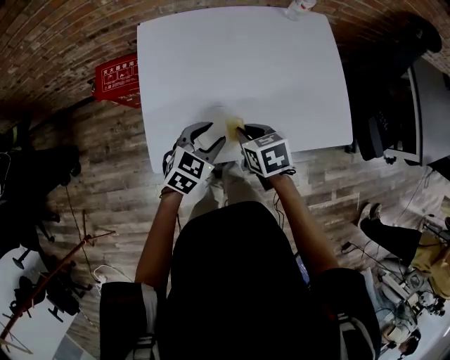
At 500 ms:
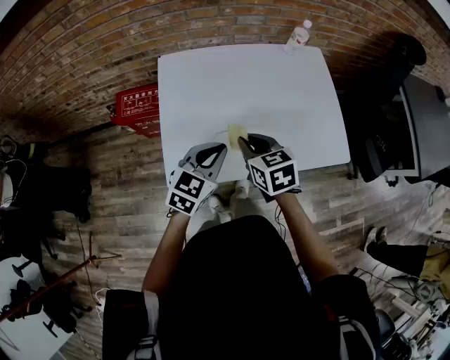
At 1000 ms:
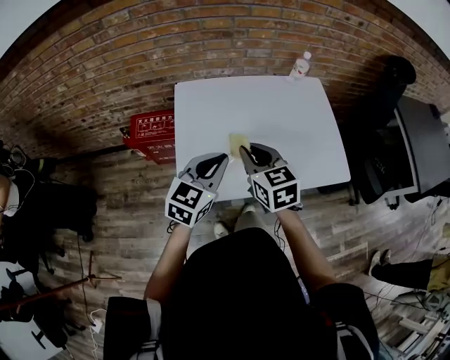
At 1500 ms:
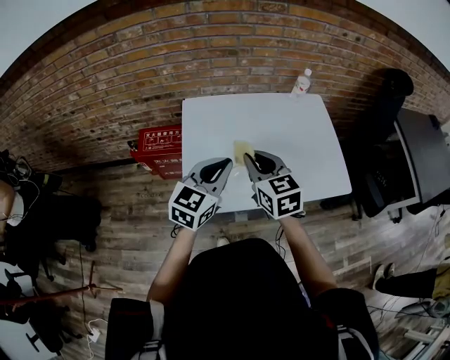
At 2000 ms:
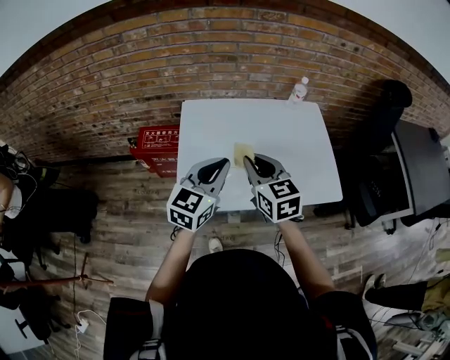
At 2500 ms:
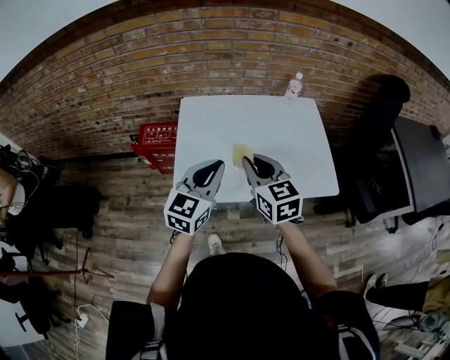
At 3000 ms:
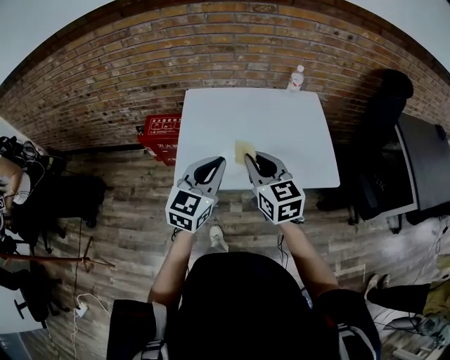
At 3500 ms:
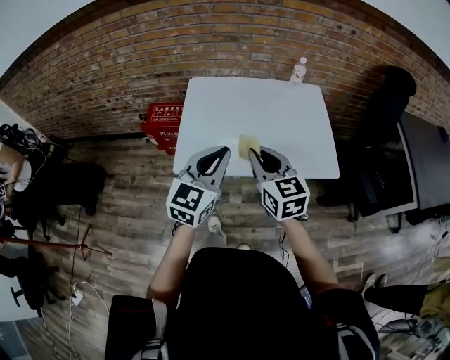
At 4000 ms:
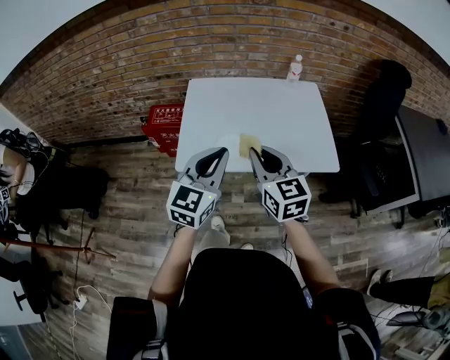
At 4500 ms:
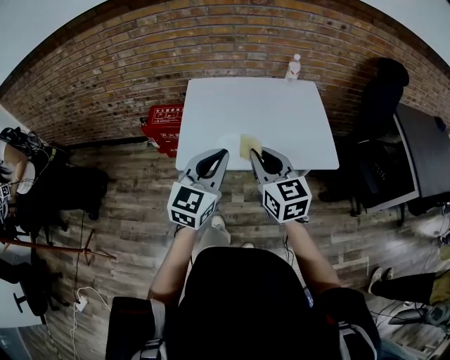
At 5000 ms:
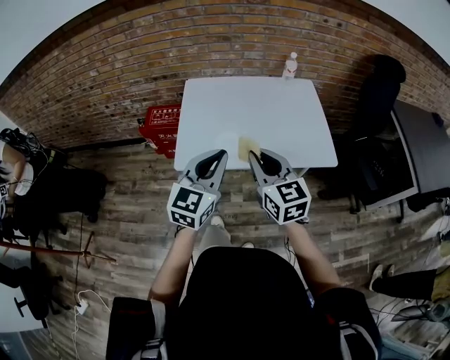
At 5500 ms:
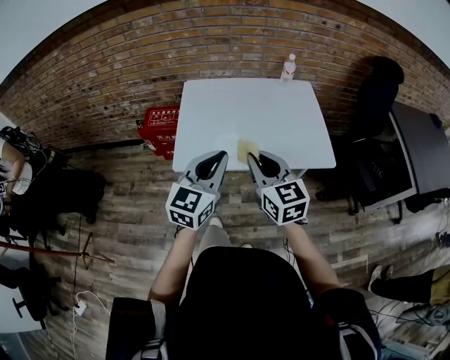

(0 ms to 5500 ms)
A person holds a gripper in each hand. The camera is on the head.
0 ms - 2000 ms: The grippers both shift upward by about 25 cm. The right gripper angles its fingers upward, by approximately 30 degrees. The left gripper turns by about 30 degrees, and closes up.
2000 ms - 3500 ms: The left gripper goes some 10 cm backward. Meanwhile the right gripper is displaced backward and to the right by approximately 15 cm.
3500 ms - 5500 ms: The two grippers go approximately 5 cm backward.

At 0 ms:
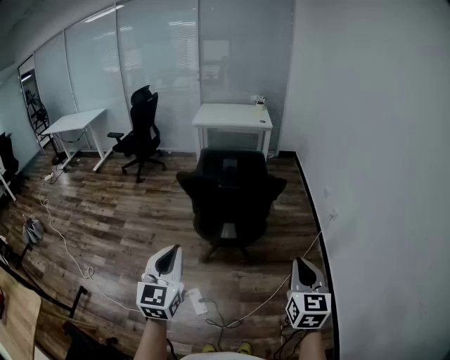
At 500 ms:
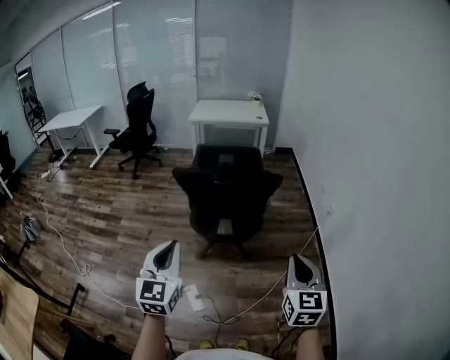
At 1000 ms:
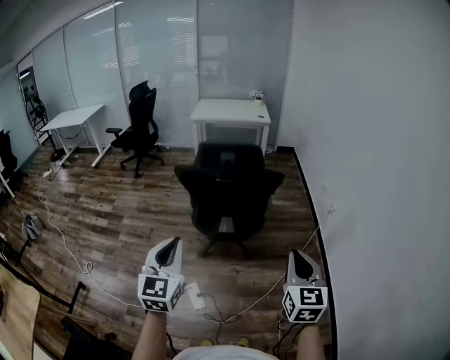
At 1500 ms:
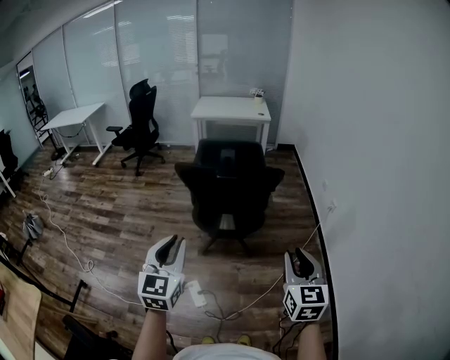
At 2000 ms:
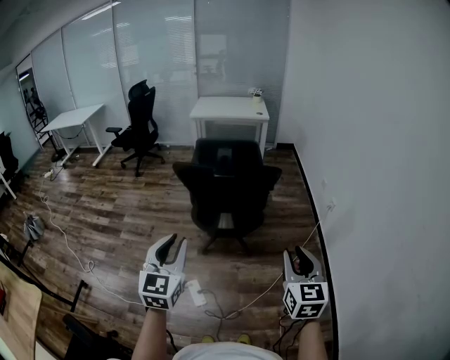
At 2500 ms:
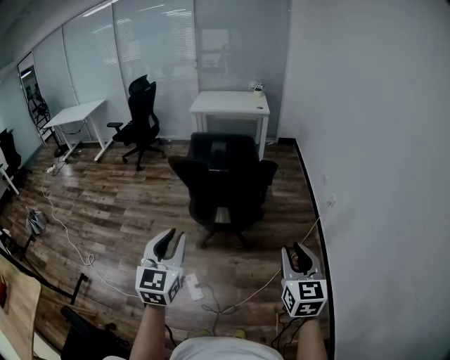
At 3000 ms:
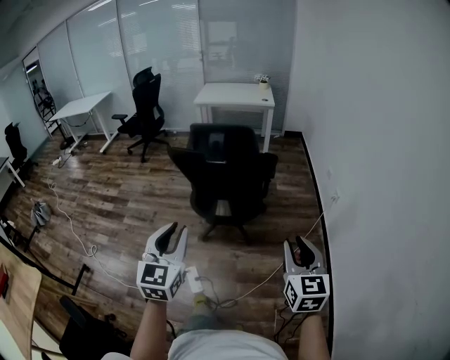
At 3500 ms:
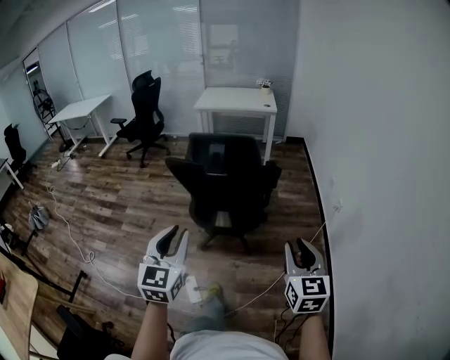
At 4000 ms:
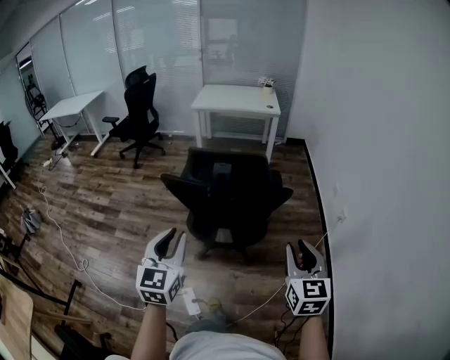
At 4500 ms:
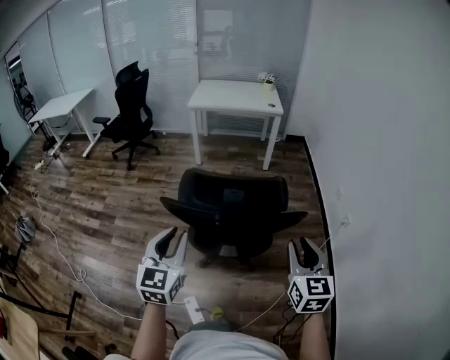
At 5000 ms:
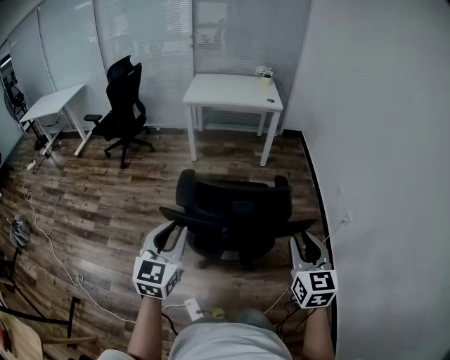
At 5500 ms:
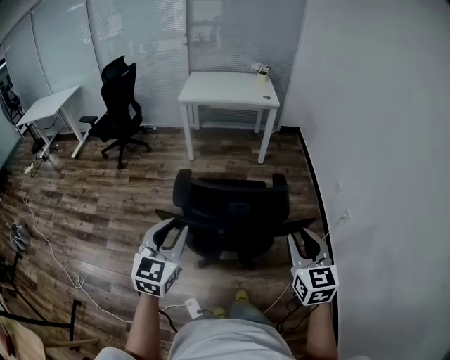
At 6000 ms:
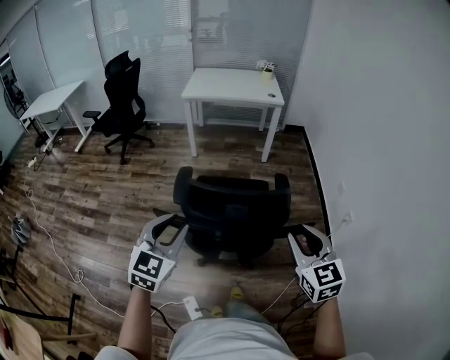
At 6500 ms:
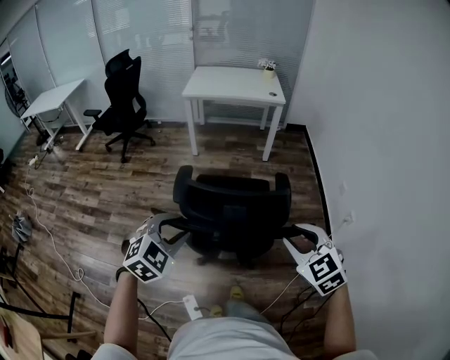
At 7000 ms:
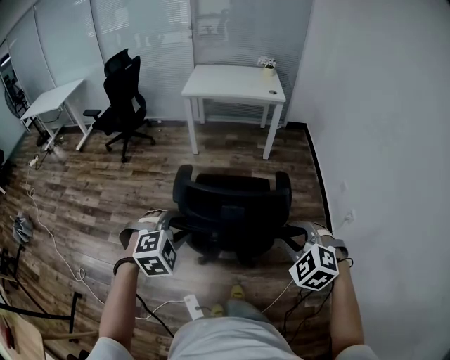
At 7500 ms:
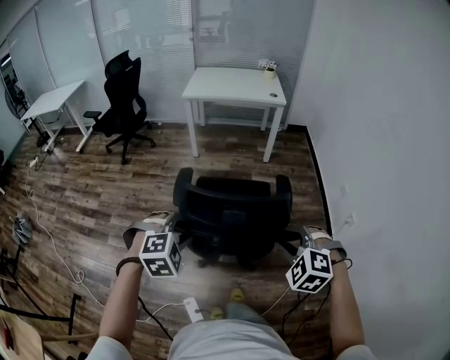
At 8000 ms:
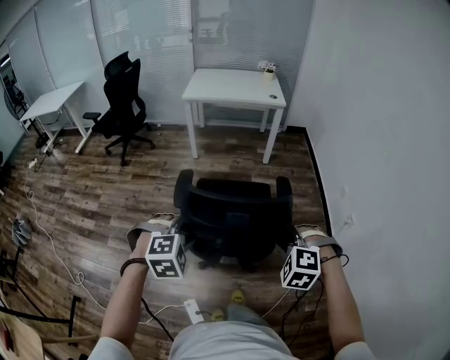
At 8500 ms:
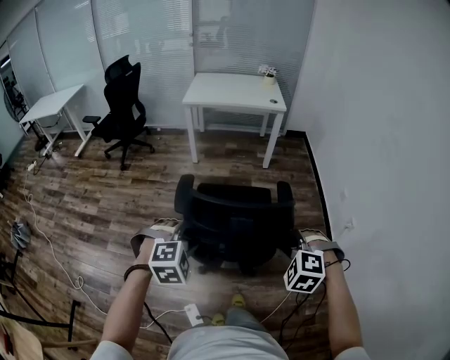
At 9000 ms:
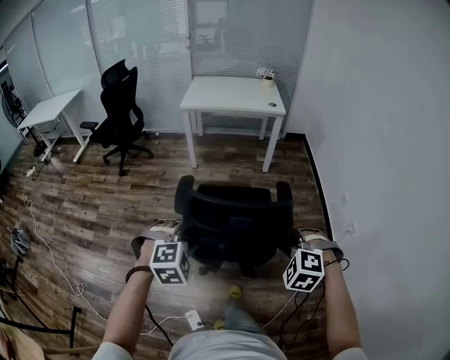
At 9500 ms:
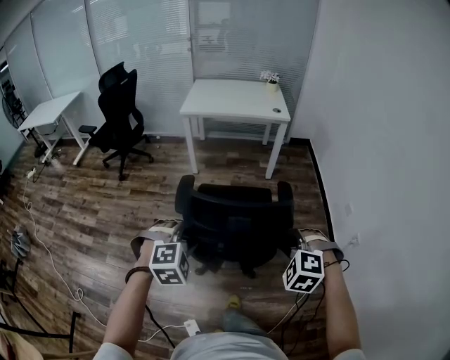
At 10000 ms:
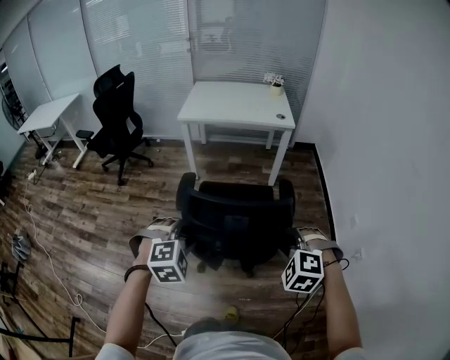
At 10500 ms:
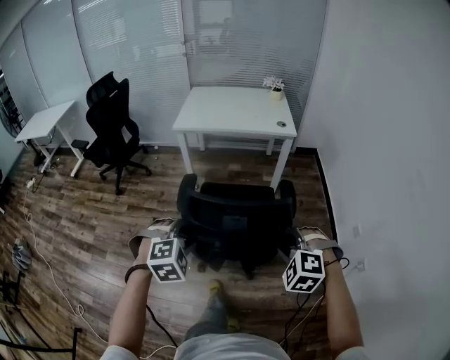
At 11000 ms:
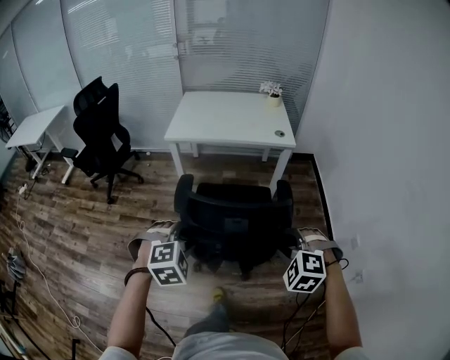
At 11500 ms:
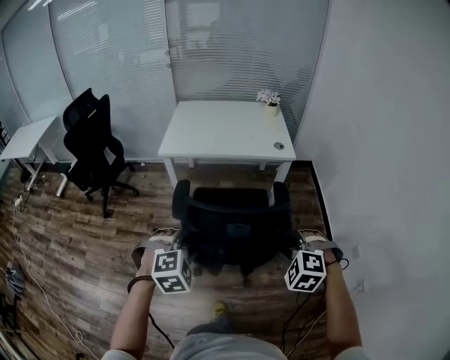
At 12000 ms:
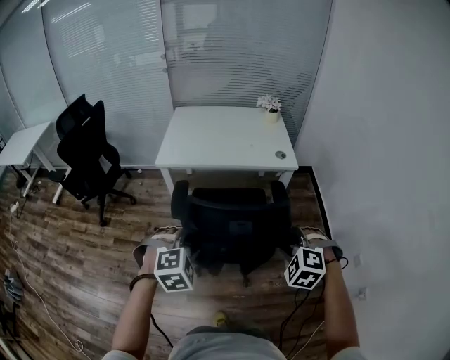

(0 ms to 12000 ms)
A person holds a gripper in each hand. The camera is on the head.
0 ms - 2000 ms: The right gripper opens. The left gripper opens its fingers.
2000 ms - 4000 ms: The grippers both shift forward by some 25 cm.
4000 ms - 6000 ms: The two grippers go some 25 cm forward. The left gripper rotates roughly 20 degrees.
6000 ms - 8000 ms: The grippers both shift downward by about 10 cm. The left gripper tips its fingers downward by some 40 degrees. Meanwhile the right gripper tips its fingers downward by some 40 degrees.
8000 ms - 10000 ms: Both grippers move forward, roughly 30 cm.
10000 ms - 12000 ms: The pair of grippers is taken forward, roughly 40 cm.

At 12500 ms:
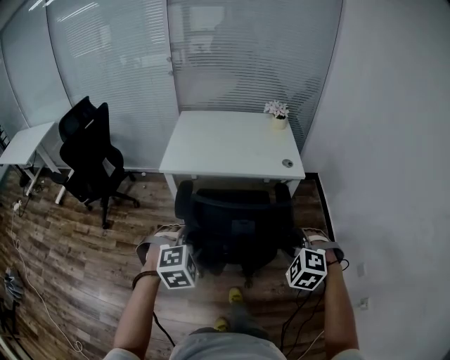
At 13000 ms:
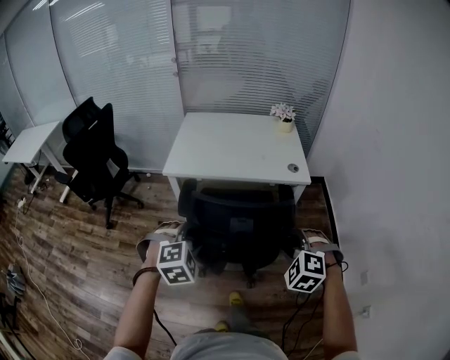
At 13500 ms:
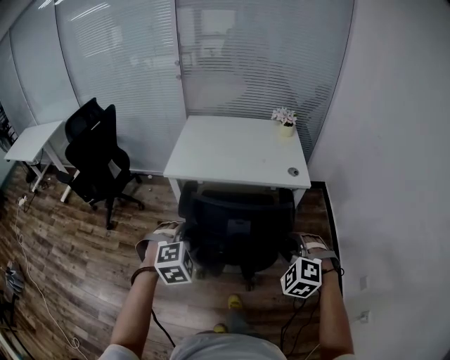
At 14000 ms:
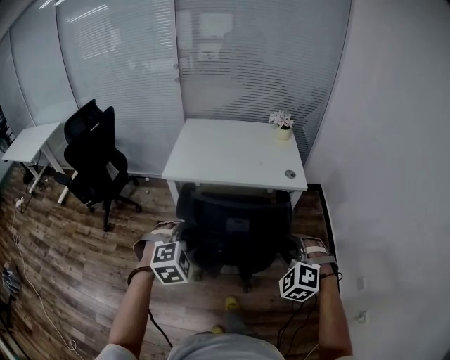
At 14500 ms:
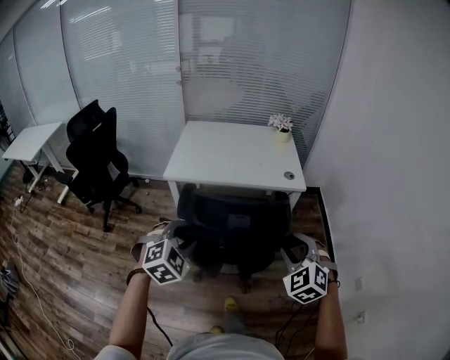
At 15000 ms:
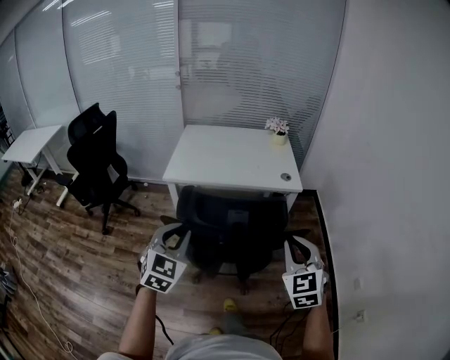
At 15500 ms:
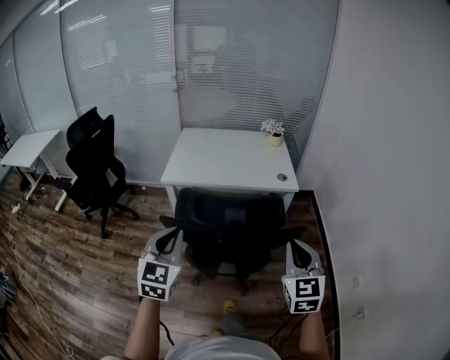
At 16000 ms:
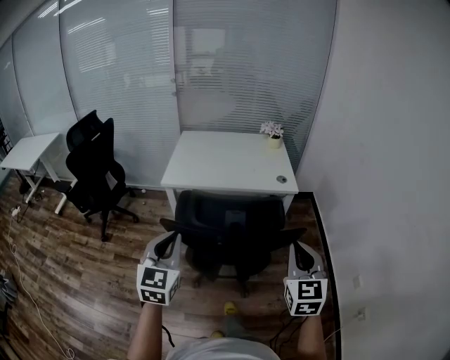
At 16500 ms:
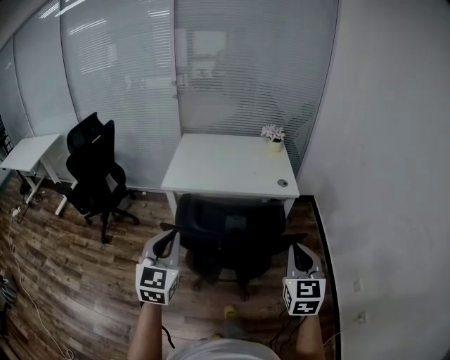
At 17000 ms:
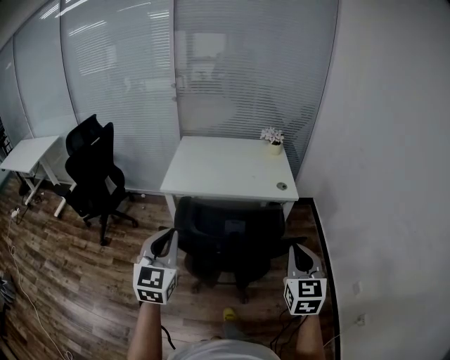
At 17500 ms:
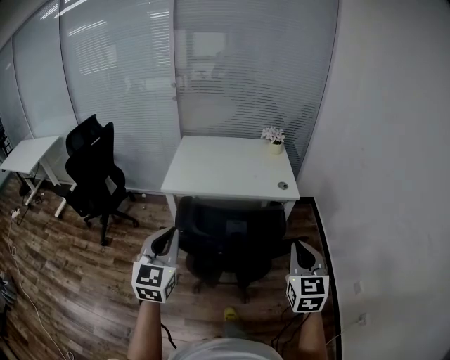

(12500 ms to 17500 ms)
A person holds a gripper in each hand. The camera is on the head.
12500 ms - 15000 ms: Both grippers travel together upward, about 10 cm. The right gripper tips its fingers upward by approximately 30 degrees, and closes its fingers. The left gripper points its fingers about 30 degrees further upward, and closes its fingers.
15000 ms - 17500 ms: The left gripper goes roughly 5 cm upward, and swivels approximately 20 degrees.

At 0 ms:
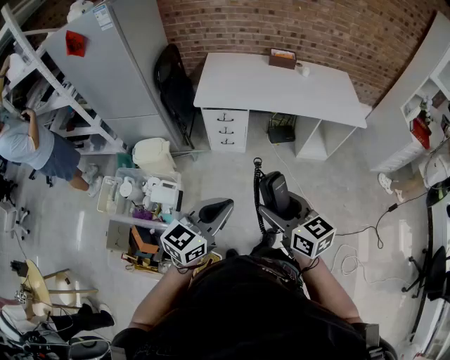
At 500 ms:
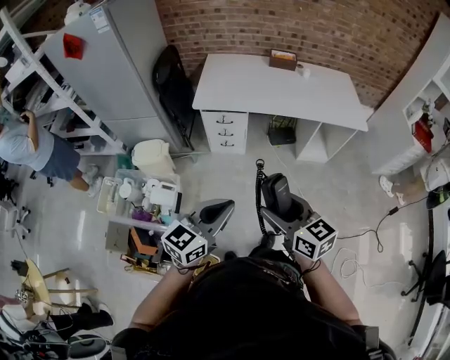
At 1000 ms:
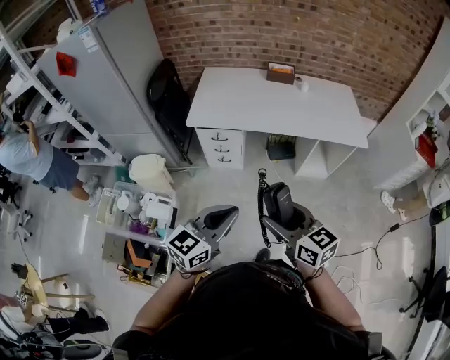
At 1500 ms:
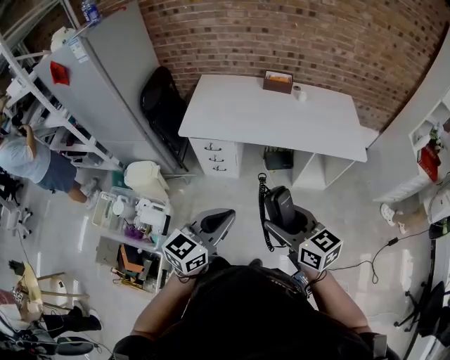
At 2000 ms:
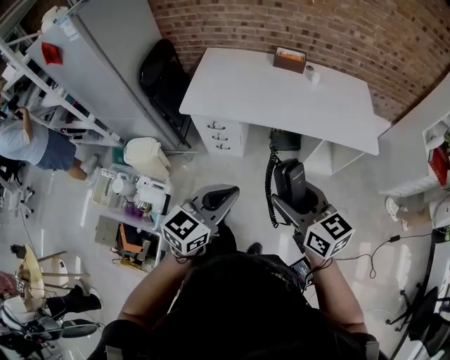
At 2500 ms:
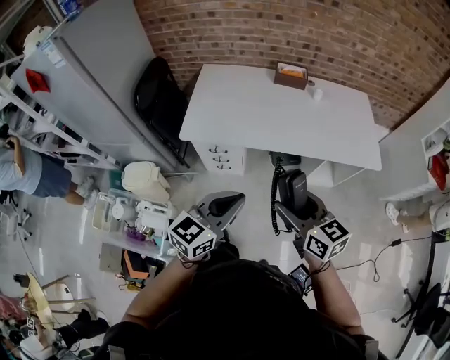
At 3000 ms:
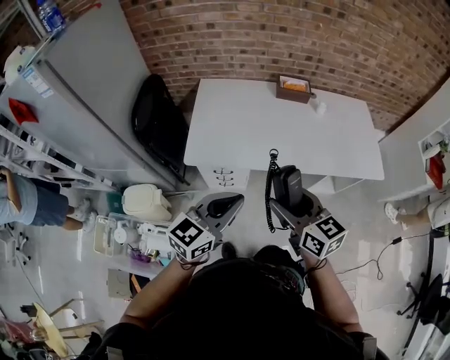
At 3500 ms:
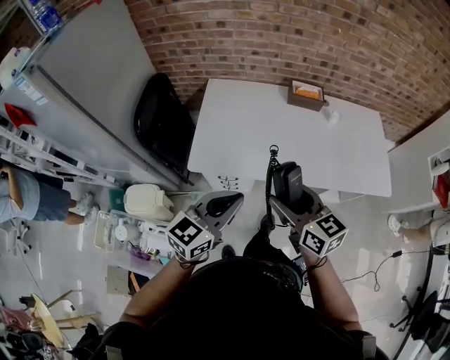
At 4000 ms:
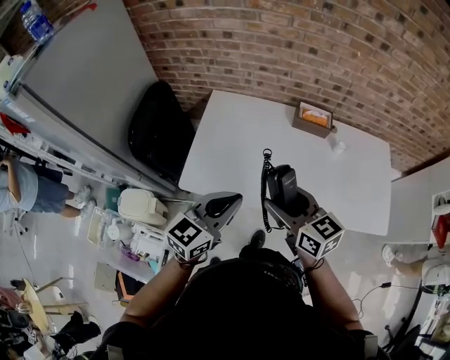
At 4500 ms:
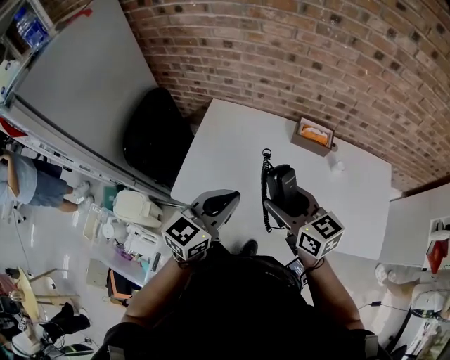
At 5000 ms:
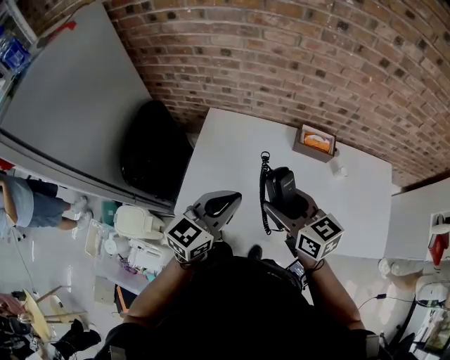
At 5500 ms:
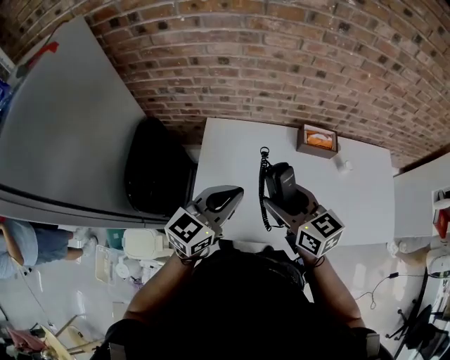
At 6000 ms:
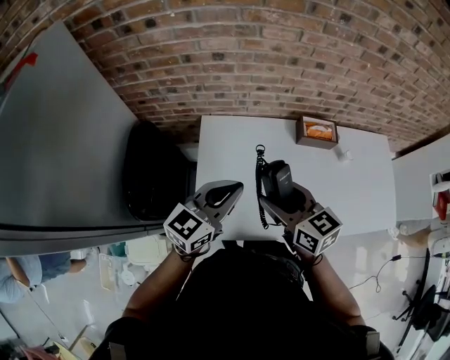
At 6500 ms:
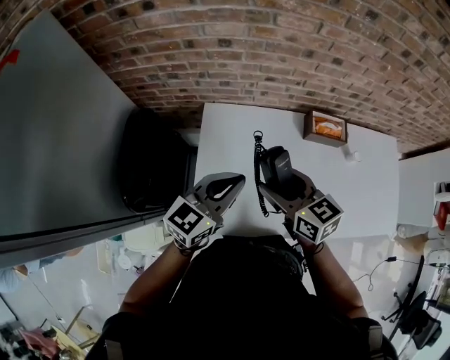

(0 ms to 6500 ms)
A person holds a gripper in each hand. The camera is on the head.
0 ms - 2000 ms: Both grippers travel together forward and to the right, approximately 25 cm.
2000 ms - 4500 ms: Both grippers are carried forward, some 50 cm.
4500 ms - 6500 ms: The grippers both shift forward and to the left by approximately 25 cm.
